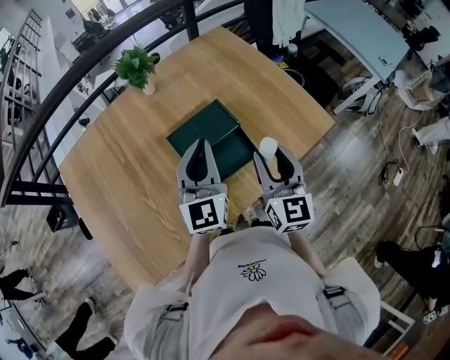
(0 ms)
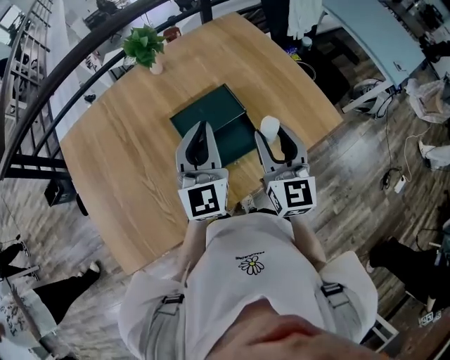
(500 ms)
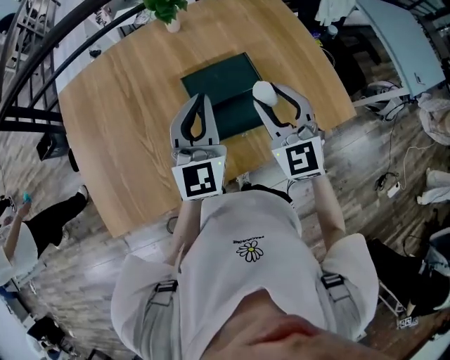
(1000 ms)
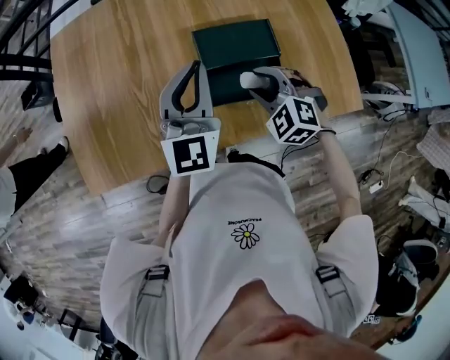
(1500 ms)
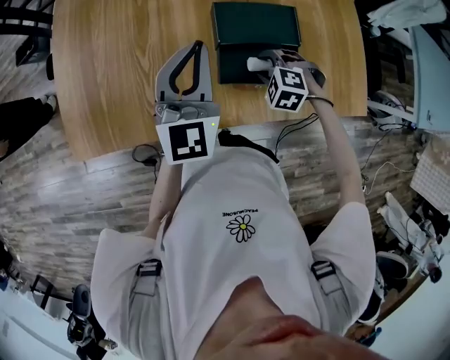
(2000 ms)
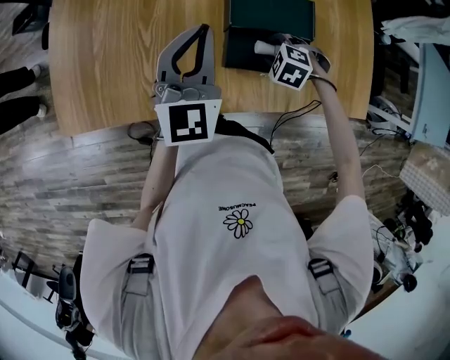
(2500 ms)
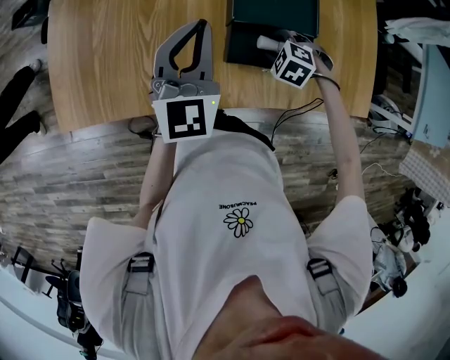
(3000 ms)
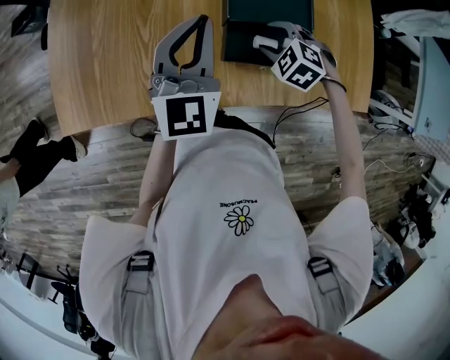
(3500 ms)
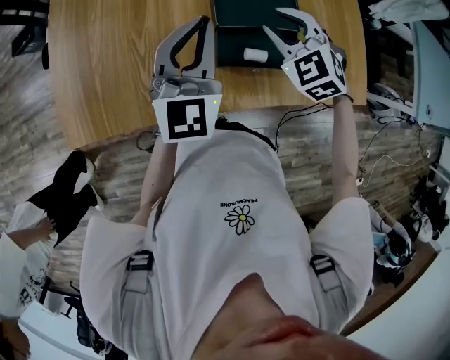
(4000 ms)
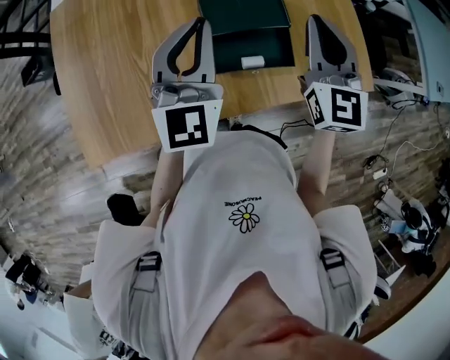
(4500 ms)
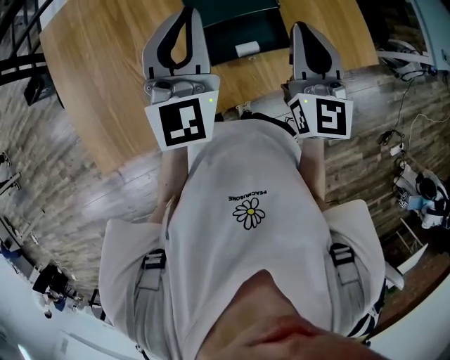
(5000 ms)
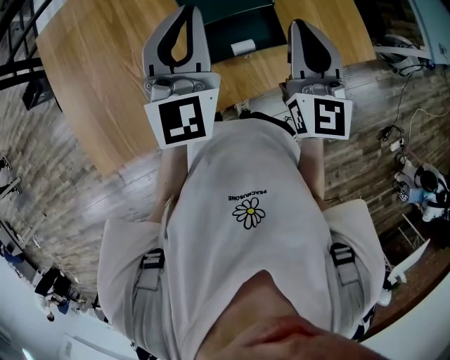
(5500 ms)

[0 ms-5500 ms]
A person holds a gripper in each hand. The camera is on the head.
0 ms to 2000 ms: The left gripper ends up approximately 15 cm from where it was, and changes its angle by roughly 20 degrees; the right gripper goes approximately 25 cm downward, and points its fingers roughly 70 degrees further downward.
2000 ms to 3500 ms: There are only small adjustments of the grippers.
3500 ms to 5500 ms: The left gripper changes place by roughly 10 cm; the right gripper heads upward, covering about 25 cm, tips its fingers upward by some 60 degrees, and closes up.

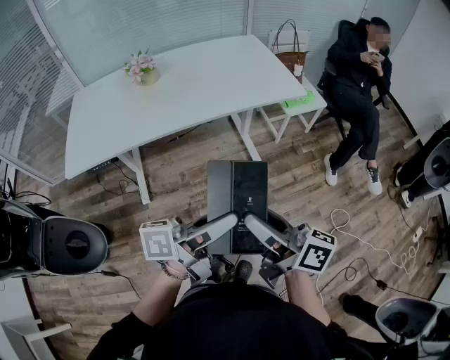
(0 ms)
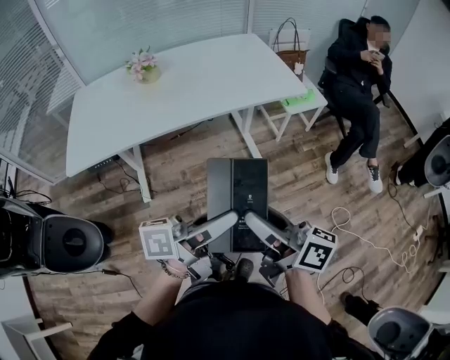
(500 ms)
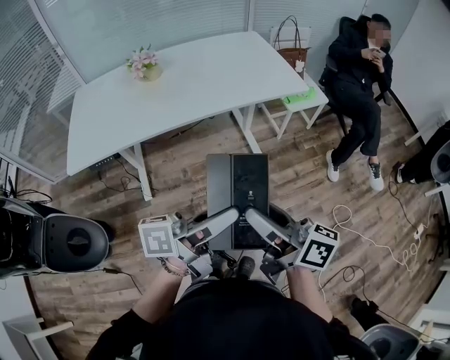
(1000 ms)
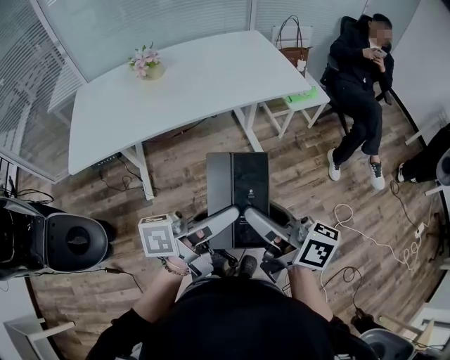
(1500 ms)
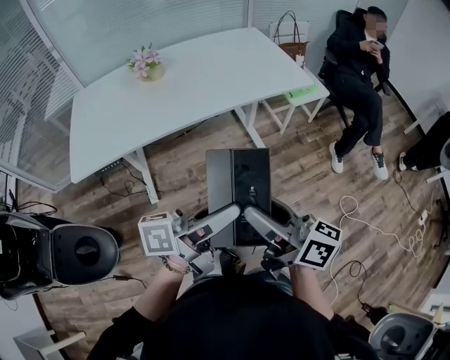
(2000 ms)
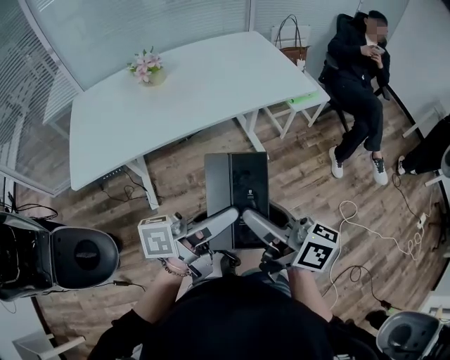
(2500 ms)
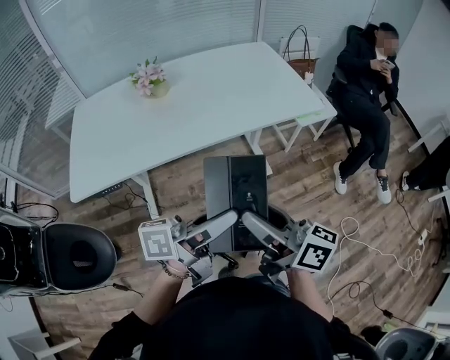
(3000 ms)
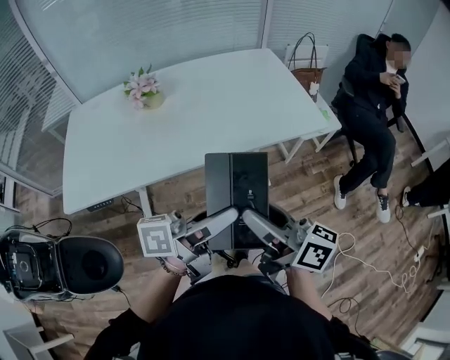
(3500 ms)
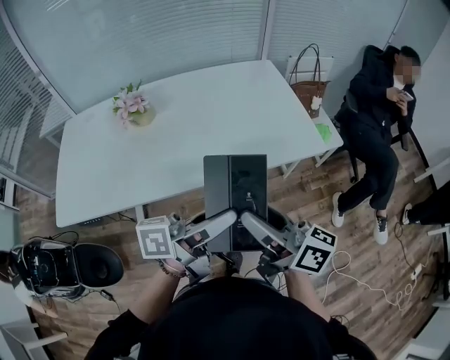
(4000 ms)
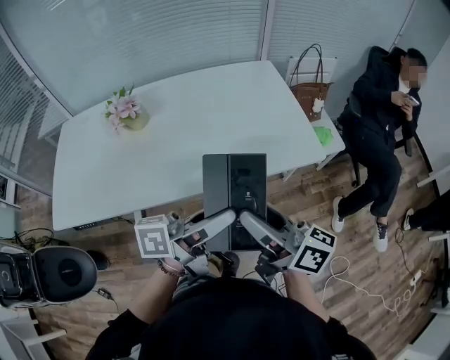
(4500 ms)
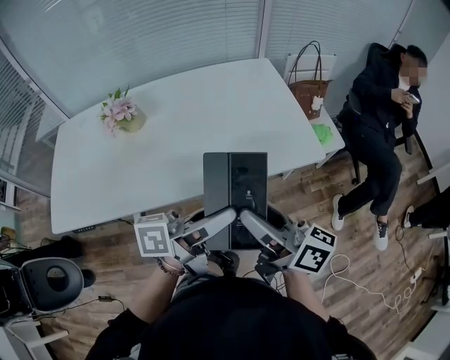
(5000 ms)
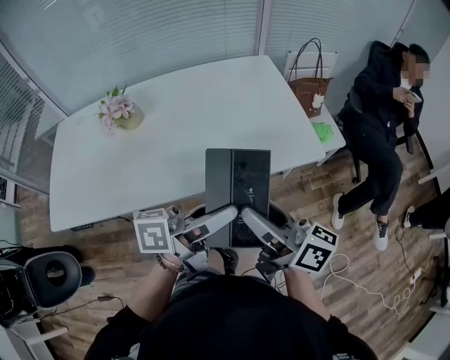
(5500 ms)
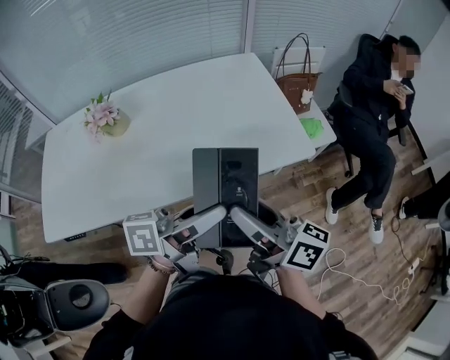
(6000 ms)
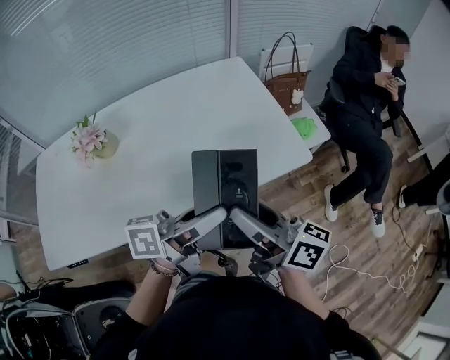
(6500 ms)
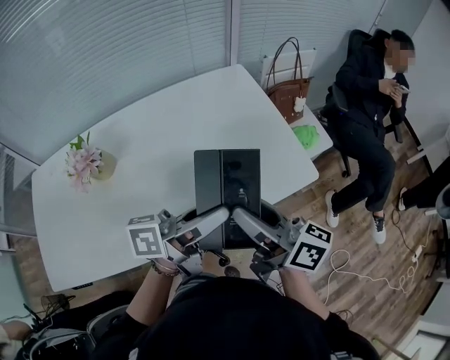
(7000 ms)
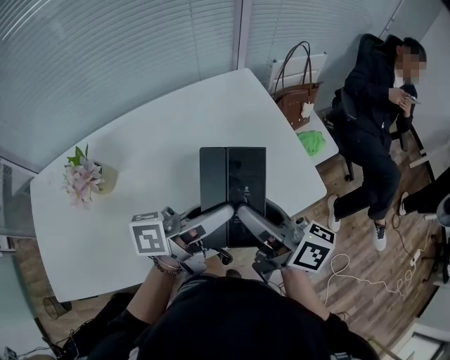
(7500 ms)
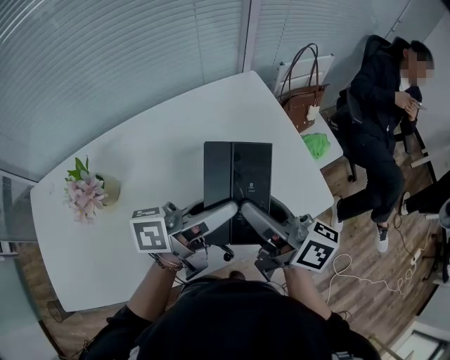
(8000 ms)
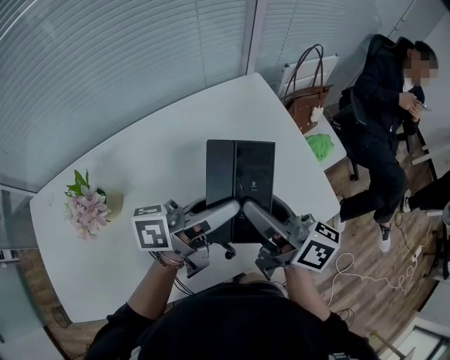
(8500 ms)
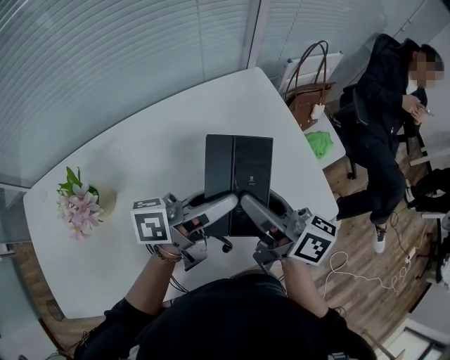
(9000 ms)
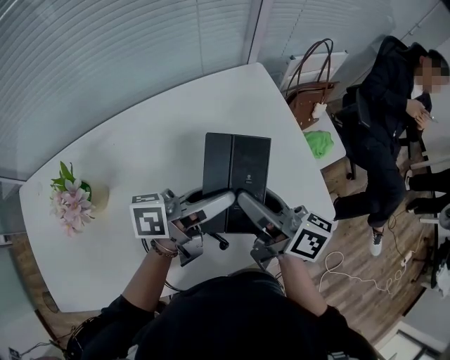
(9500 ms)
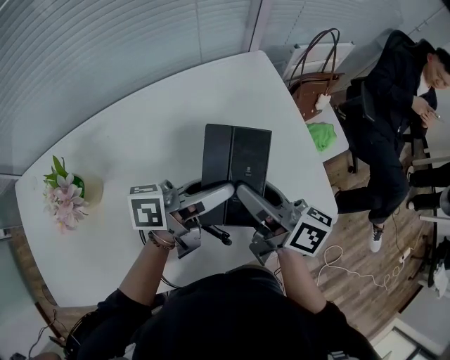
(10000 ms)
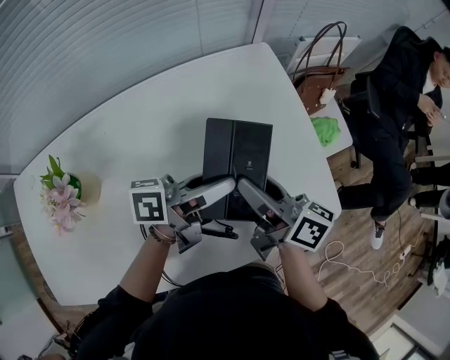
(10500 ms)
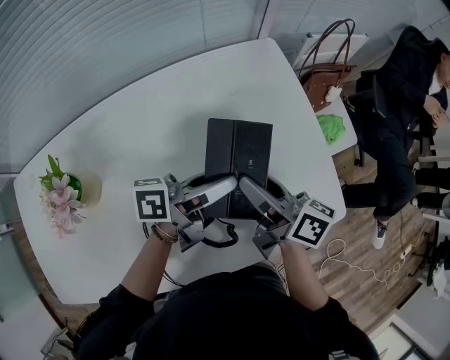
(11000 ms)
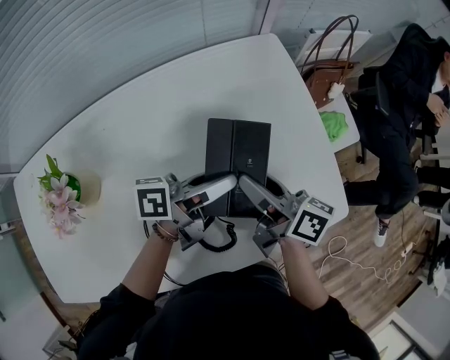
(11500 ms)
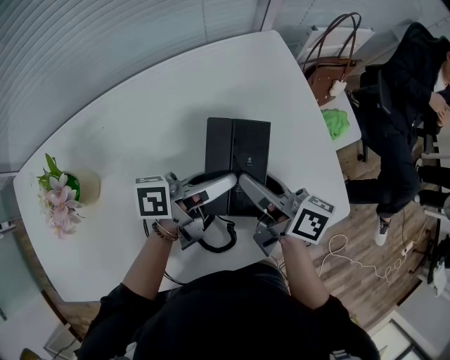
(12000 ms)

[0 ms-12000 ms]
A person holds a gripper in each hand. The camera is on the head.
0 ms to 2000 ms: Both grippers travel together to the left, about 5 cm.
2000 ms to 4000 ms: The grippers both shift forward by about 25 cm.
4000 ms to 6000 ms: The grippers both shift forward by about 10 cm.
6000 ms to 8000 ms: The grippers both shift forward by about 25 cm.
8000 ms to 10000 ms: The right gripper travels downward and forward by some 10 cm. Meanwhile the left gripper goes some 10 cm forward and downward.
10000 ms to 12000 ms: Both grippers move downward, some 5 cm.

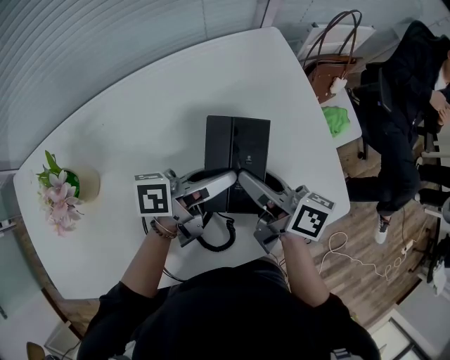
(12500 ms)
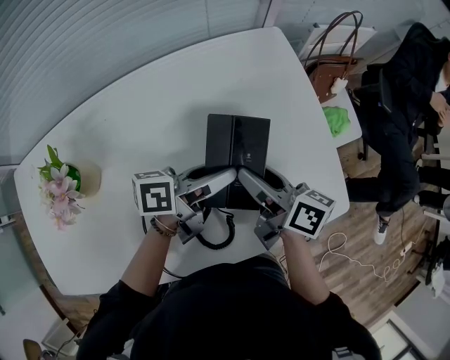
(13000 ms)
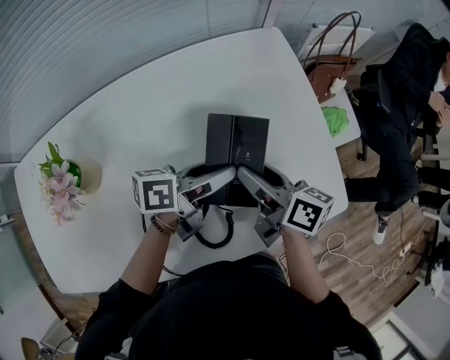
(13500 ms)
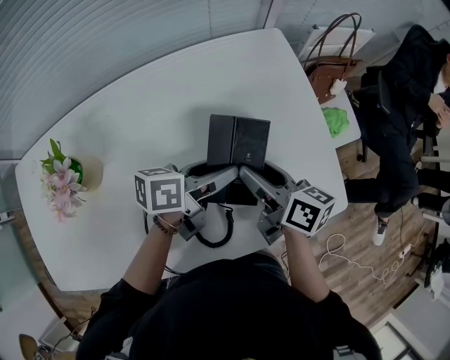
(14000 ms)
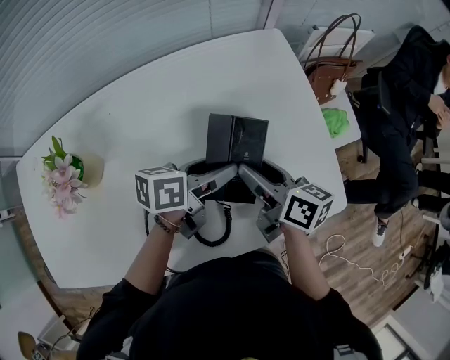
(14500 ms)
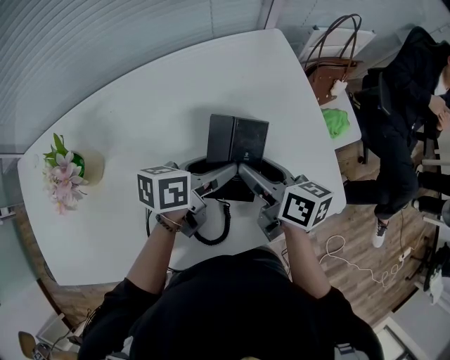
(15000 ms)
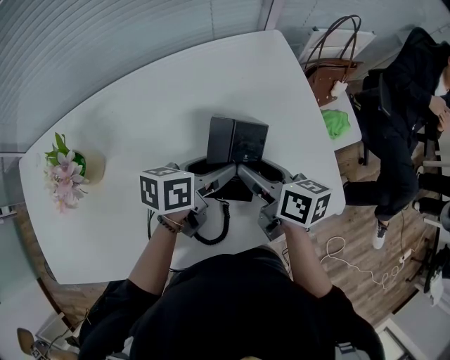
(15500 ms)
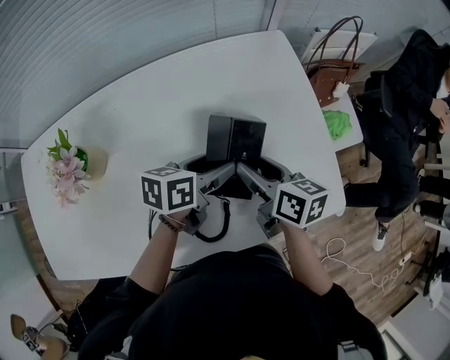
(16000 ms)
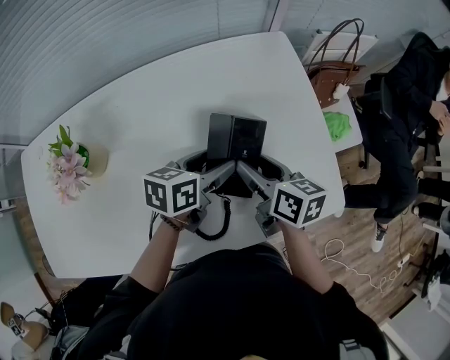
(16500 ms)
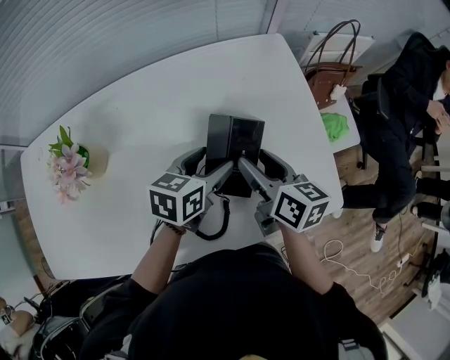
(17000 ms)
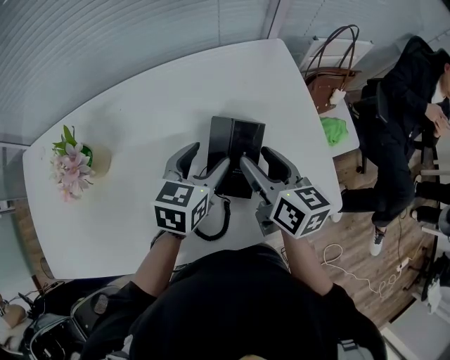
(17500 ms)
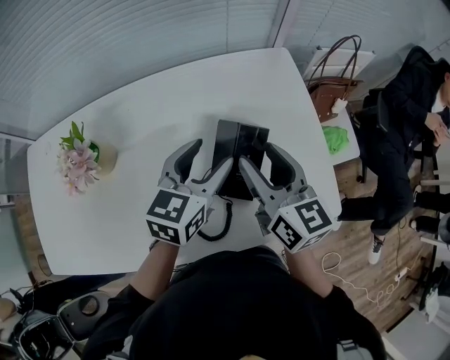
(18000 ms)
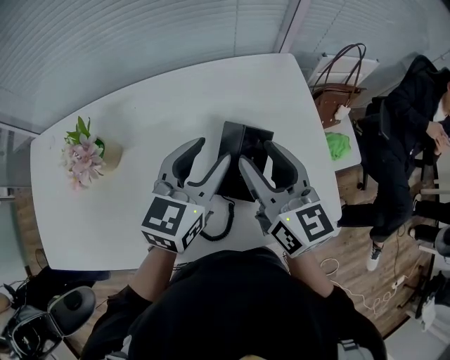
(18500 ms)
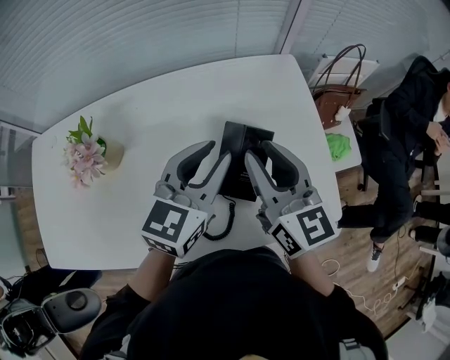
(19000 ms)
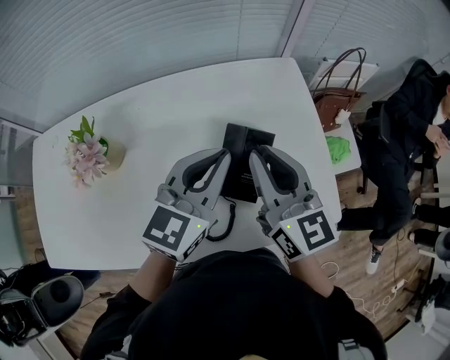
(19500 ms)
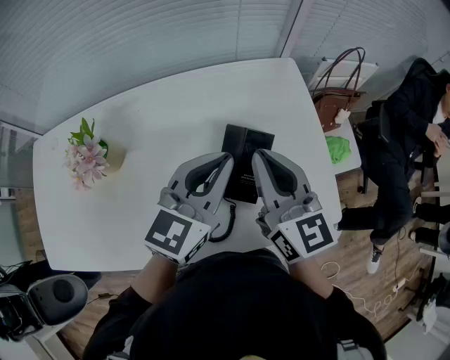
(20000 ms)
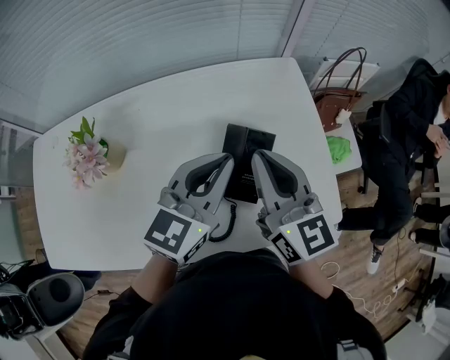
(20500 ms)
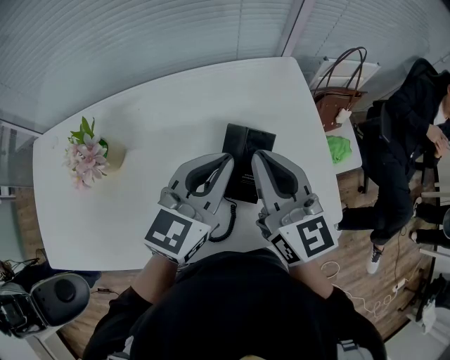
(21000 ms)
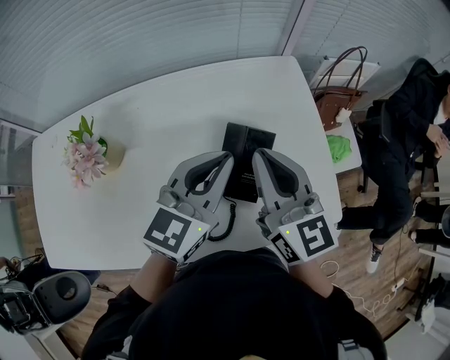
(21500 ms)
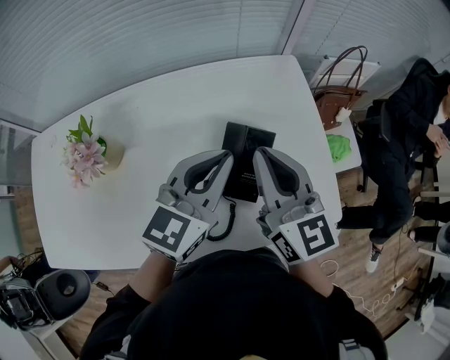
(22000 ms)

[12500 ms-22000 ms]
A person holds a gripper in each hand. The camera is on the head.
12500 ms to 14500 ms: The left gripper changes its angle by about 20 degrees.
14500 ms to 16500 ms: The grippers move only a little.
16500 ms to 18000 ms: The two grippers go some 10 cm upward. The right gripper changes its angle by approximately 30 degrees; the left gripper rotates roughly 30 degrees.
18000 ms to 20000 ms: The two grippers go about 5 cm upward. The right gripper closes its fingers. The left gripper closes.
20000 ms to 22000 ms: Both grippers stay put.
